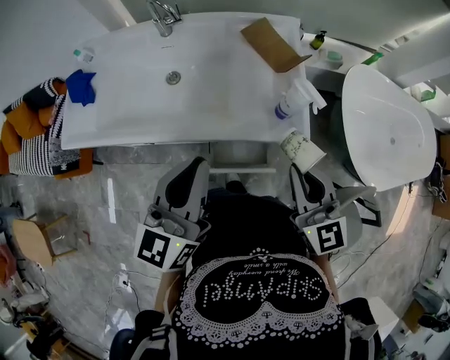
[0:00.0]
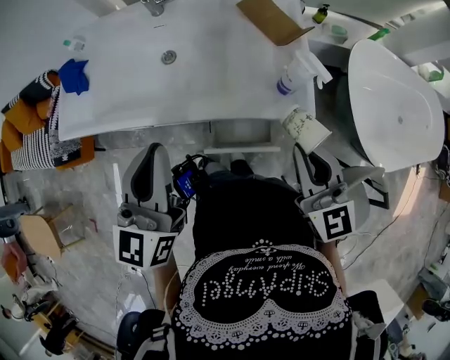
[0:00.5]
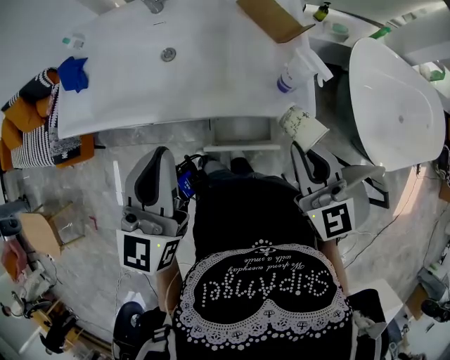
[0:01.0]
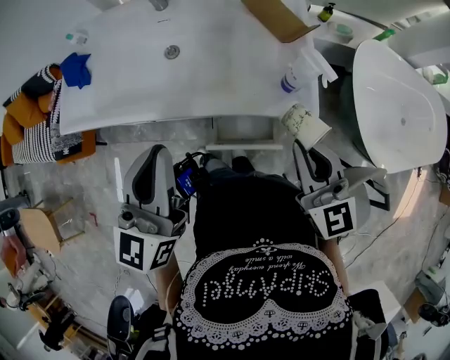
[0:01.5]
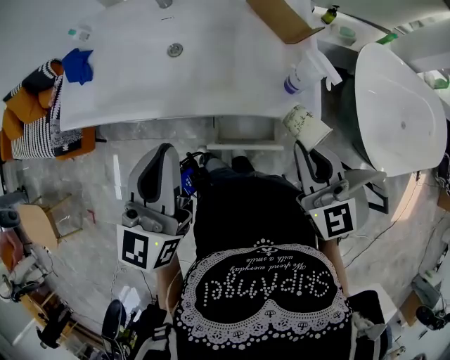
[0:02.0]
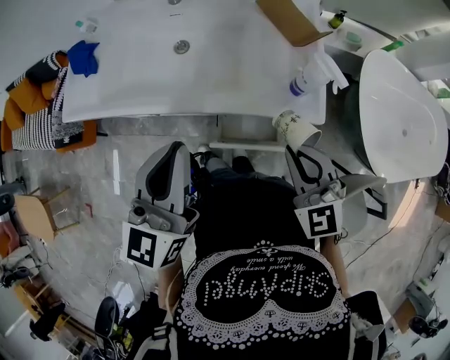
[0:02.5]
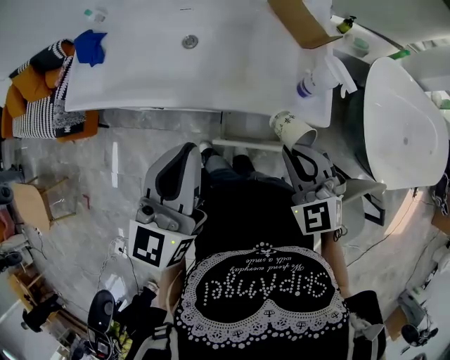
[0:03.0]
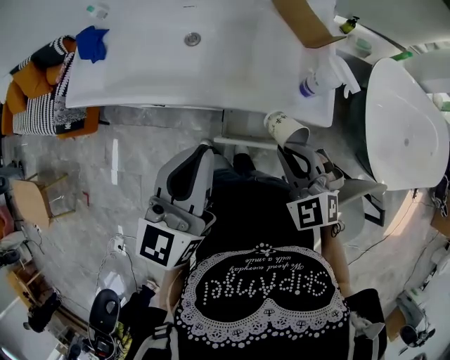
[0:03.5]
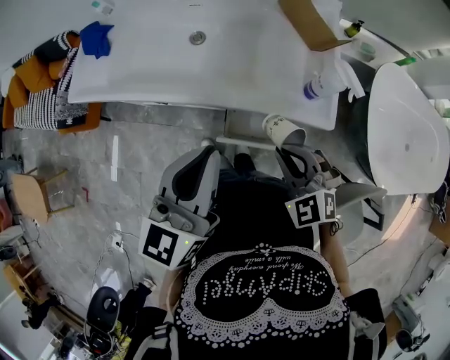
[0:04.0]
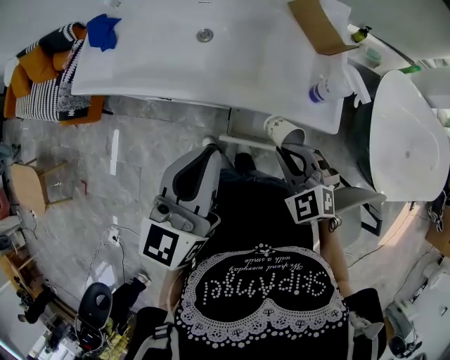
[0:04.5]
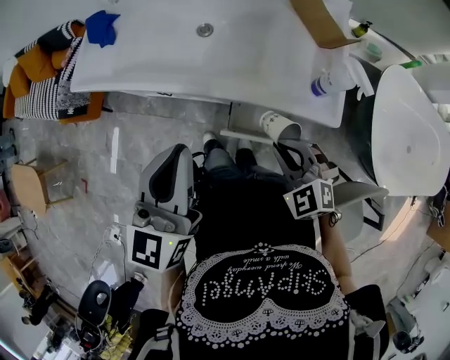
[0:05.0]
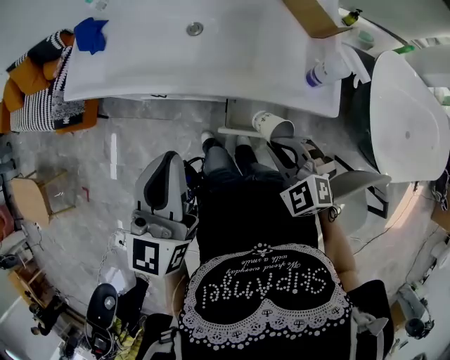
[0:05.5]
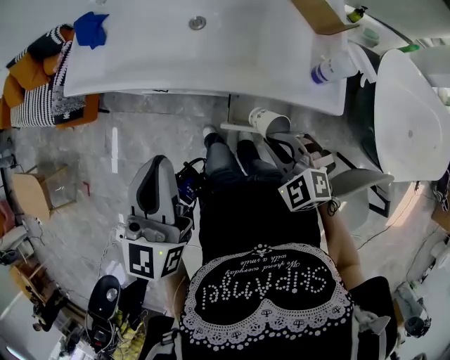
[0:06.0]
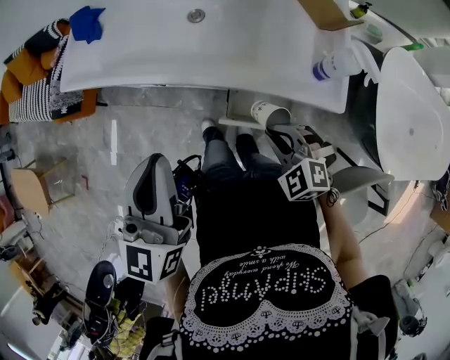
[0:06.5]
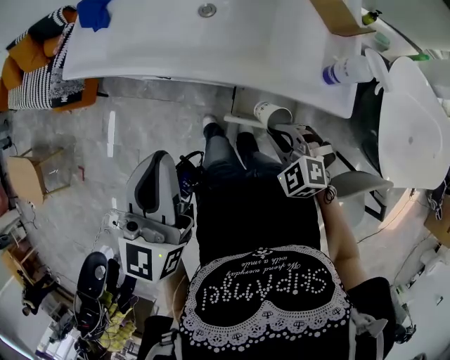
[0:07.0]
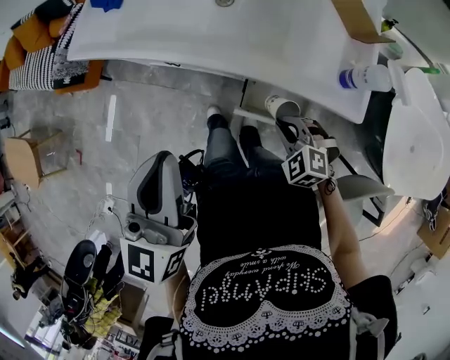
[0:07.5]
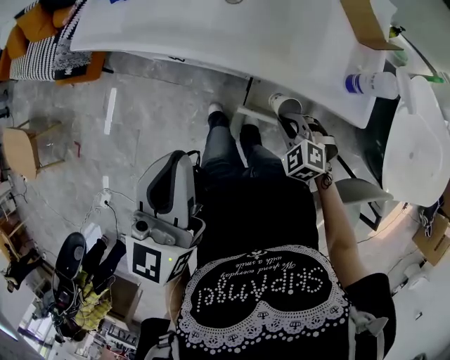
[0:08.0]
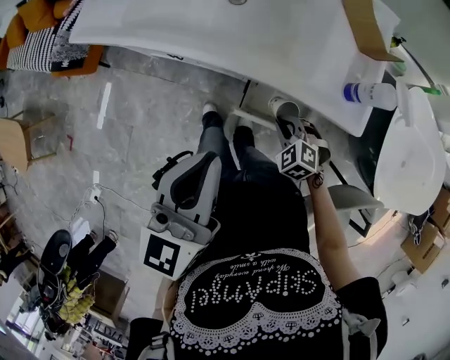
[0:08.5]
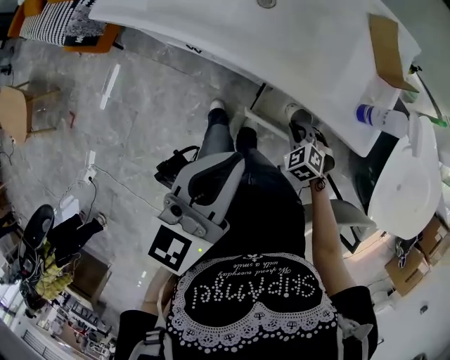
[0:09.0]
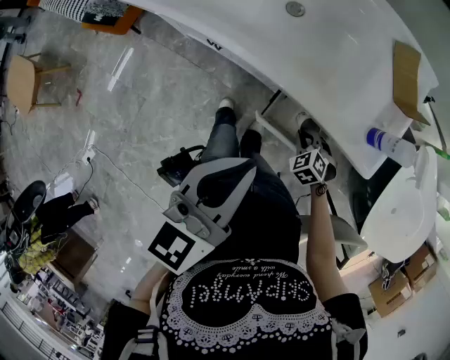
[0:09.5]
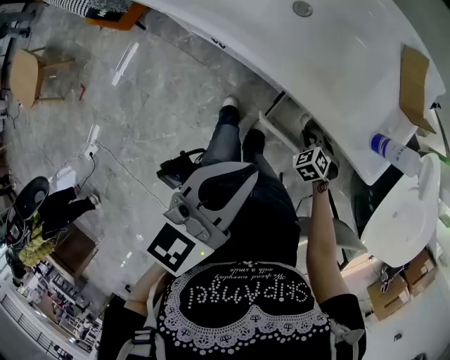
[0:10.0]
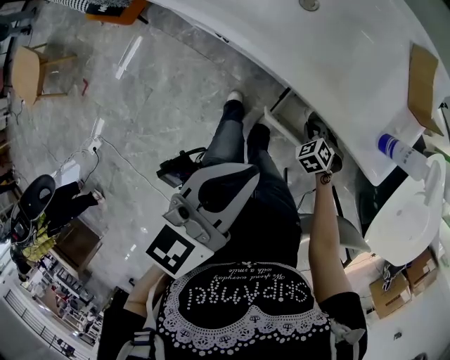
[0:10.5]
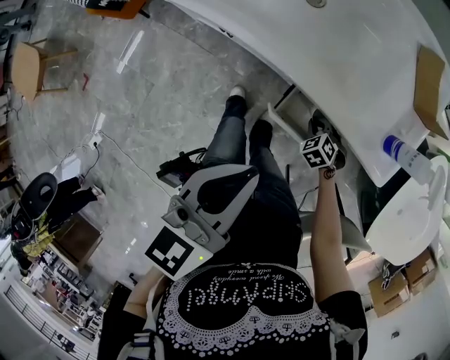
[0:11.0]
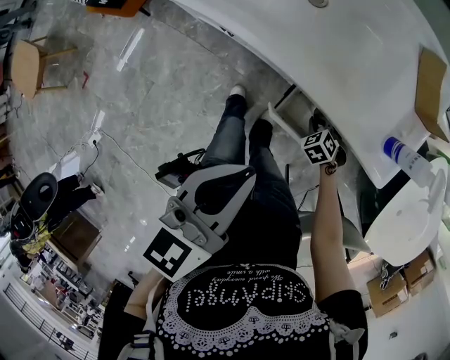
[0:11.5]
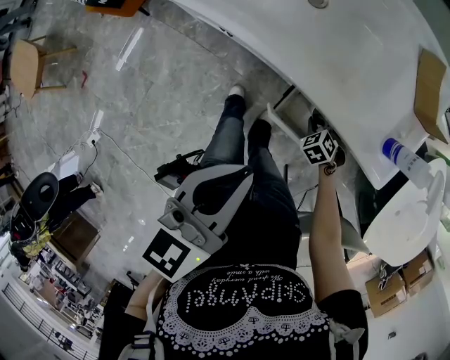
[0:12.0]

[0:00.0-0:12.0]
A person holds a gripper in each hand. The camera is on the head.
0:00.0 to 0:02.0: The left gripper travels to the left by roughly 5 cm.
0:02.0 to 0:04.0: The right gripper goes some 10 cm downward and to the left, and swivels approximately 50 degrees.
0:04.0 to 0:06.0: The left gripper shifts roughly 10 cm to the left; the right gripper changes place by about 5 cm.
0:06.0 to 0:08.0: The right gripper is displaced downward by some 15 cm.
0:08.0 to 0:10.0: The right gripper travels downward by approximately 10 cm, while the left gripper moves to the right and downward, roughly 5 cm.
0:10.0 to 0:12.0: The right gripper changes place by some 5 cm.

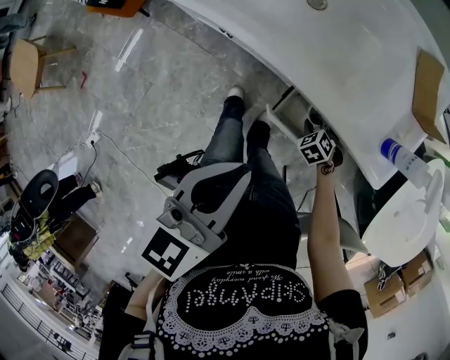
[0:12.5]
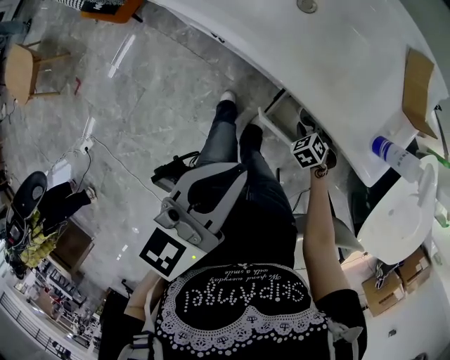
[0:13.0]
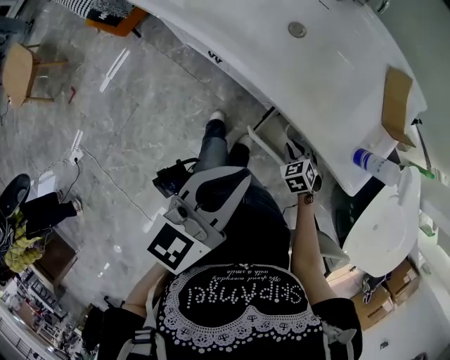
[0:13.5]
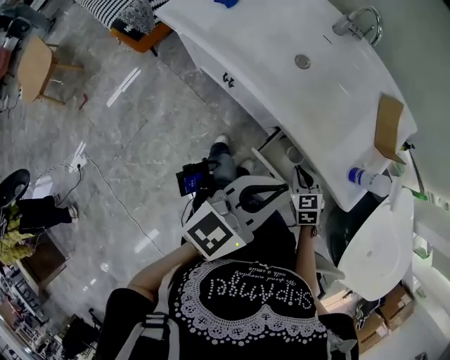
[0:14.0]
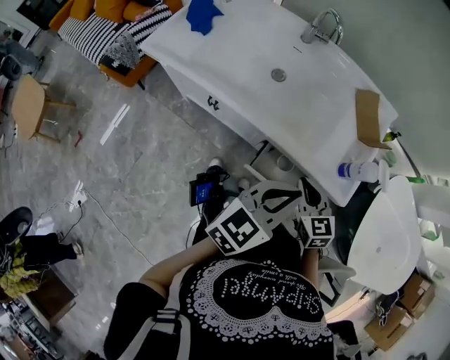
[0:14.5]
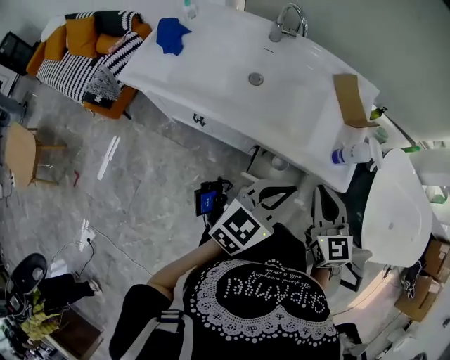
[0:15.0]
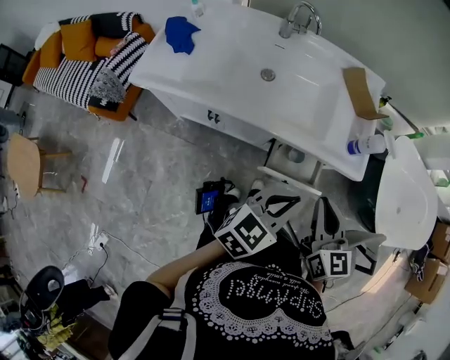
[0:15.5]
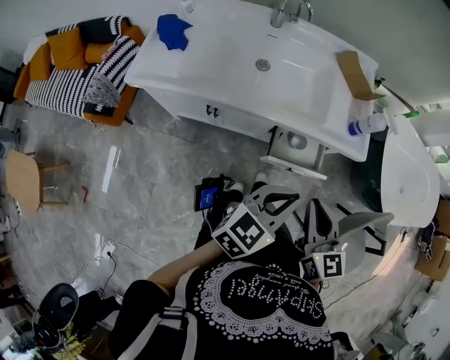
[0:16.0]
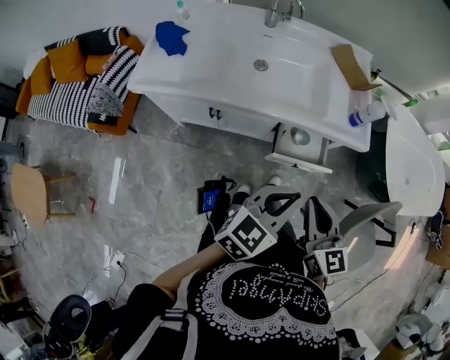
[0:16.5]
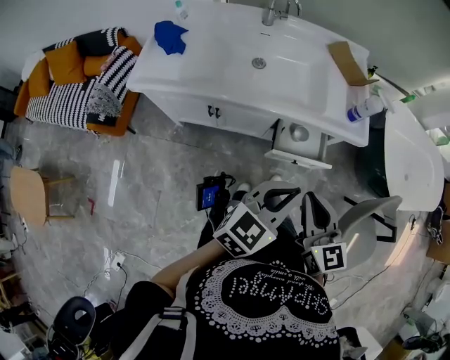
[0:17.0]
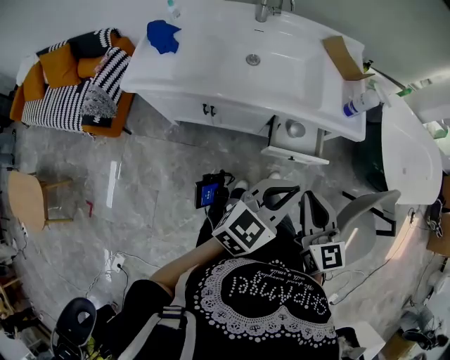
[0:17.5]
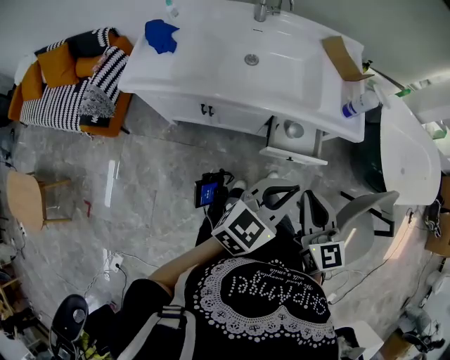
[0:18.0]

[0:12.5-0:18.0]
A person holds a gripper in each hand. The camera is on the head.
0:12.5 to 0:14.5: The left gripper ends up approximately 15 cm from where it was, and rotates approximately 30 degrees; the right gripper heads upward, covering approximately 30 cm, and angles its fingers upward, by approximately 40 degrees.
0:14.5 to 0:16.0: The left gripper goes about 15 cm backward and to the left. The right gripper travels backward and upward by some 20 cm, and turns by some 30 degrees.
0:16.0 to 0:18.0: There are only small adjustments of the grippers.

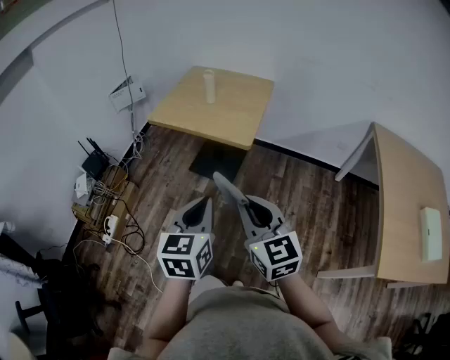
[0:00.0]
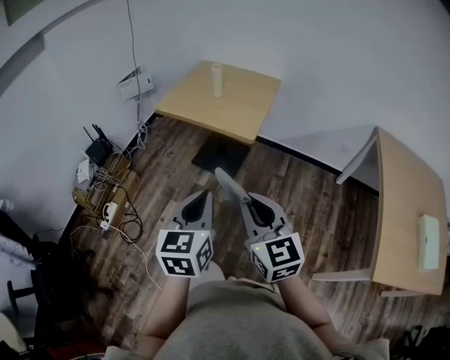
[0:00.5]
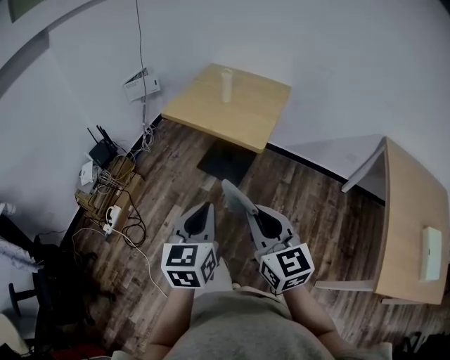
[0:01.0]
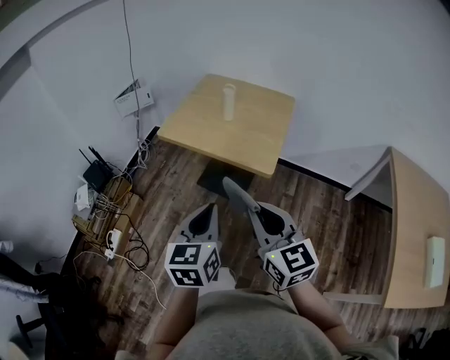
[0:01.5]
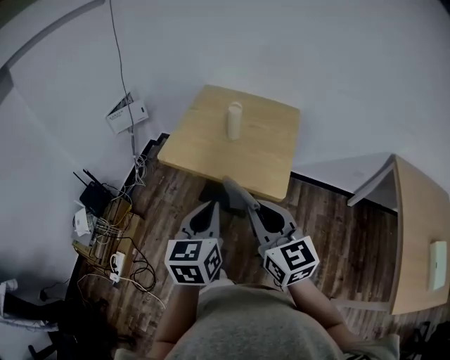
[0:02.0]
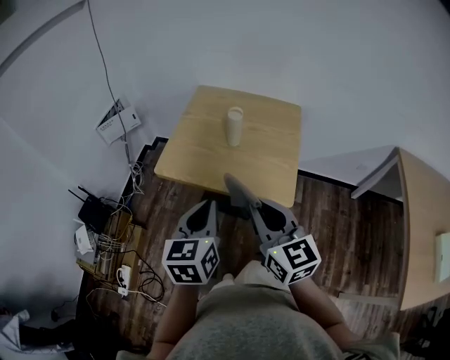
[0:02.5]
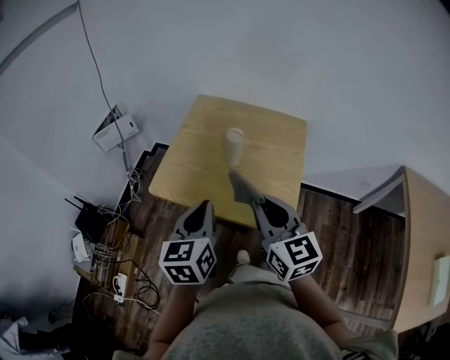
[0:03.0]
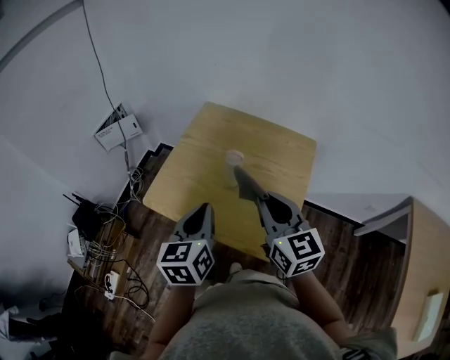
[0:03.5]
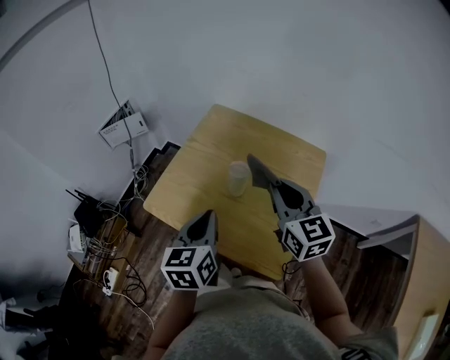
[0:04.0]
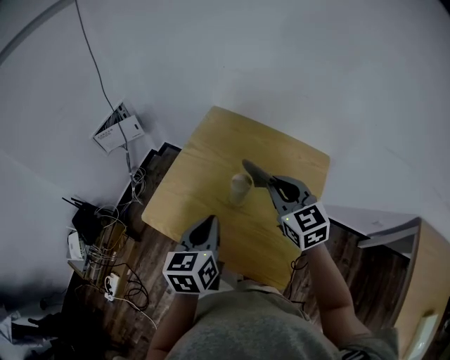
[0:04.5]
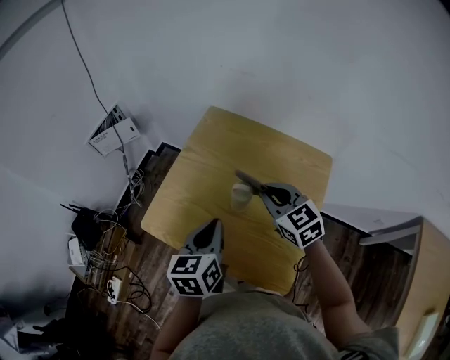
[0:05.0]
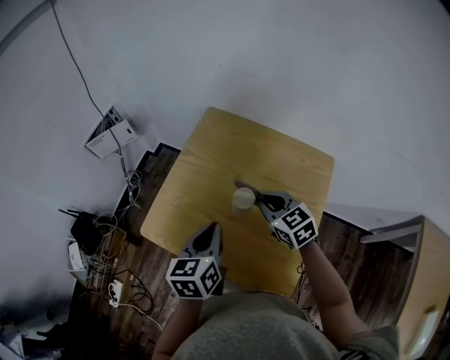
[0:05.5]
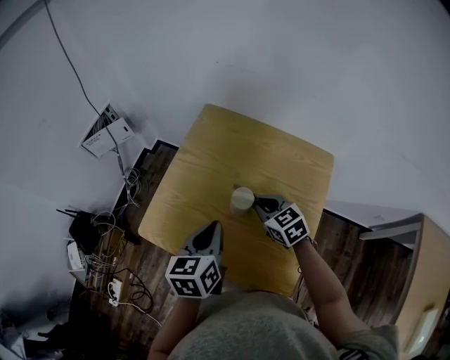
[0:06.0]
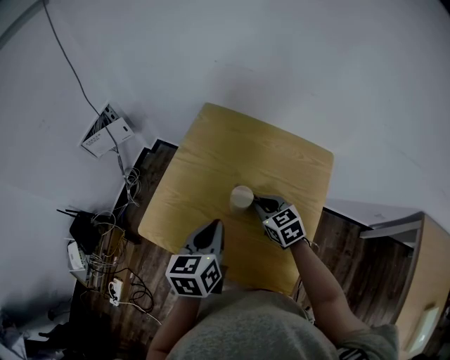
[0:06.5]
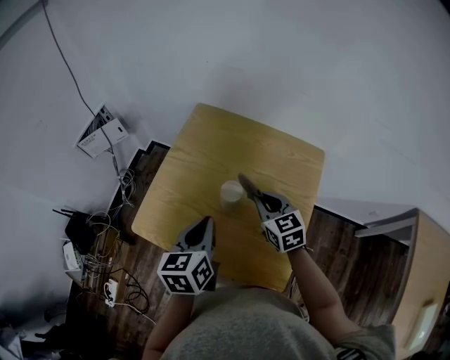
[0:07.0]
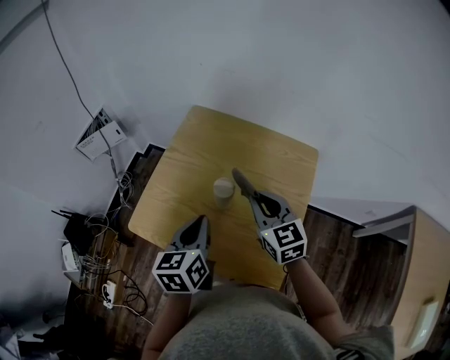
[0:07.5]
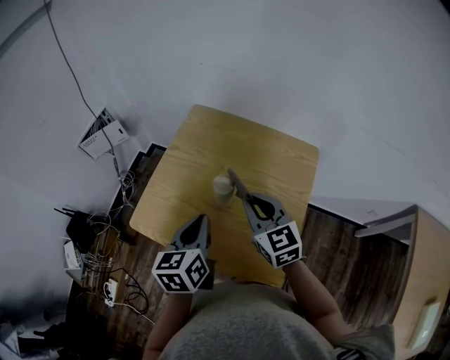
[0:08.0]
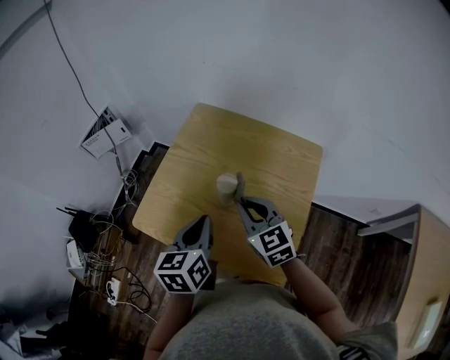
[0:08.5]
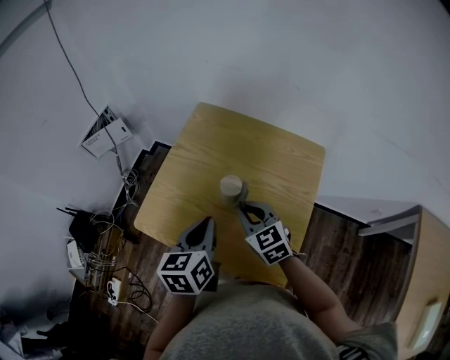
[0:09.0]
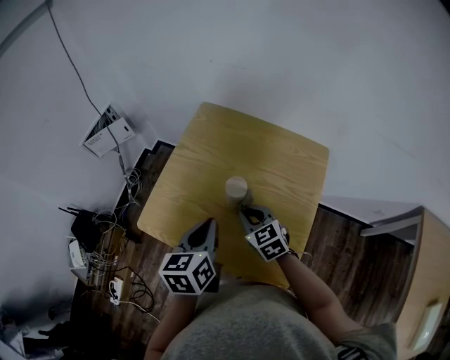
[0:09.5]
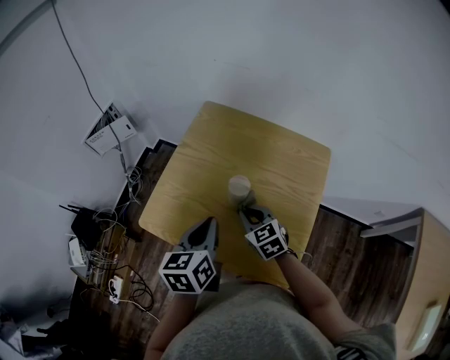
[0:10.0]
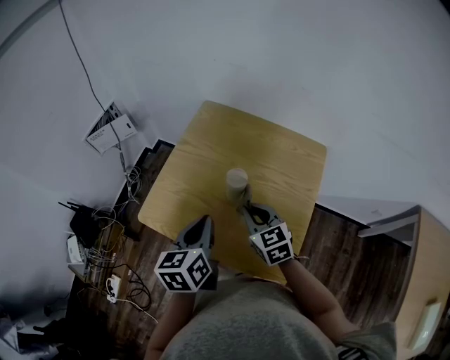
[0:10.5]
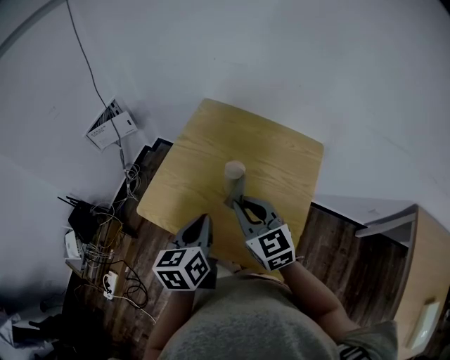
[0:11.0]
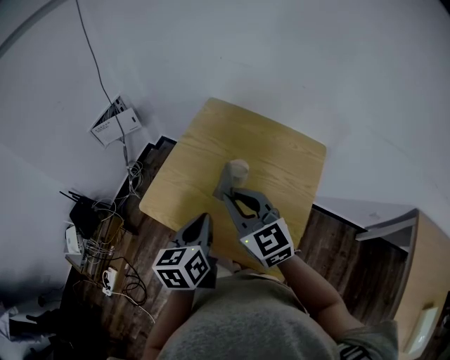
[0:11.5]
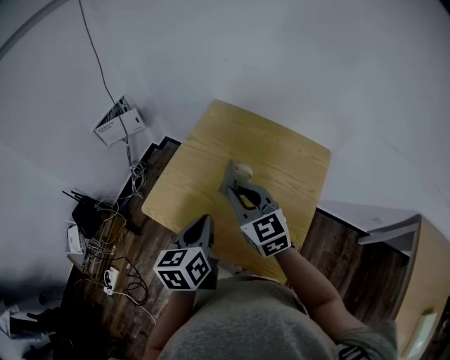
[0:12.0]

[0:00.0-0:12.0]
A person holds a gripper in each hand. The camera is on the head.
0:00.0 to 0:02.0: The grippers both shift forward by roughly 25 cm.
0:02.0 to 0:04.0: The two grippers go about 35 cm forward.
0:04.0 to 0:06.0: The left gripper travels forward and downward by some 10 cm. Meanwhile the right gripper heads downward and forward, covering some 20 cm, and rotates approximately 30 degrees.
0:06.0 to 0:08.0: The right gripper heads upward and backward, covering roughly 15 cm, and swivels some 20 degrees.
0:08.0 to 0:10.0: The right gripper shifts roughly 15 cm downward.
0:10.0 to 0:12.0: The right gripper travels upward by some 15 cm, and rotates some 20 degrees.
